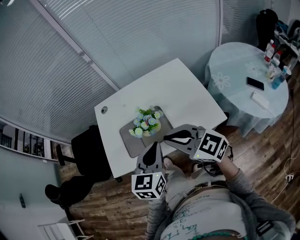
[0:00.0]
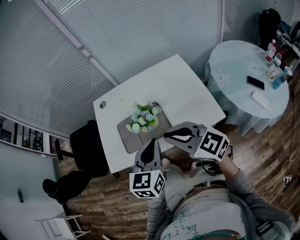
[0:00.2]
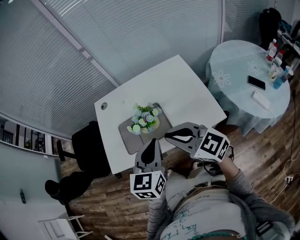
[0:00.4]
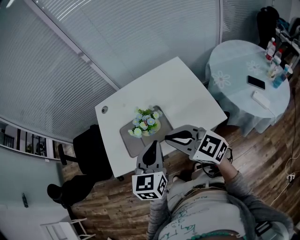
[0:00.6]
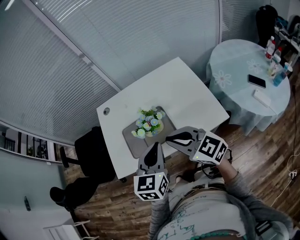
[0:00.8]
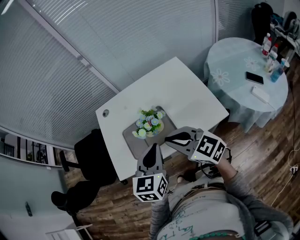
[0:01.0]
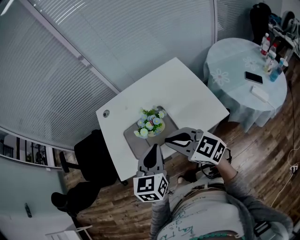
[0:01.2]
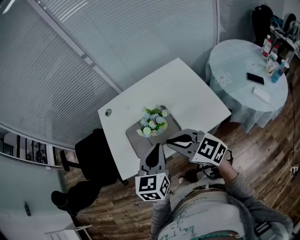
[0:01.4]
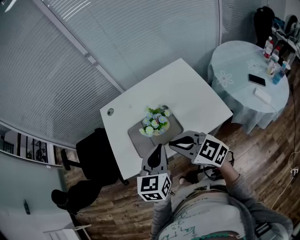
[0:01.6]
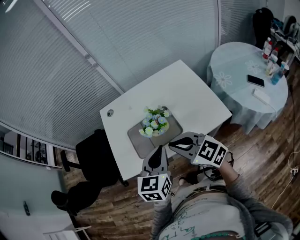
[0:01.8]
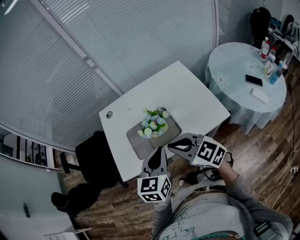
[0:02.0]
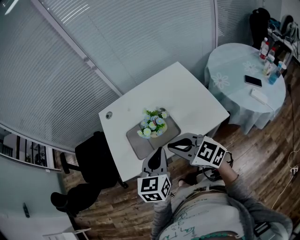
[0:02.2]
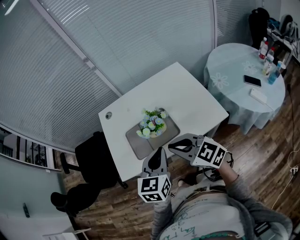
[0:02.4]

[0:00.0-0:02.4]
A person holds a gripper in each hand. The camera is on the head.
0:00.0 to 0:02.4: The grippers move only a little.

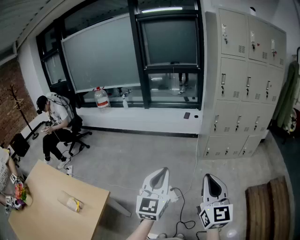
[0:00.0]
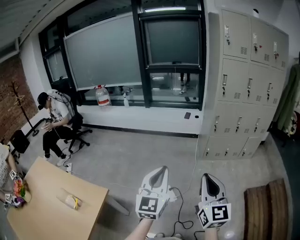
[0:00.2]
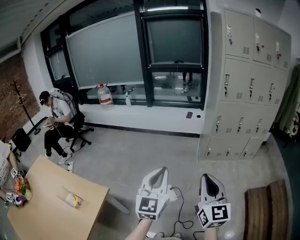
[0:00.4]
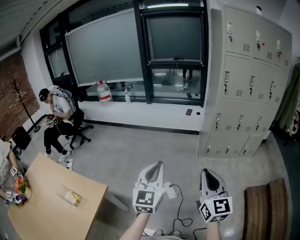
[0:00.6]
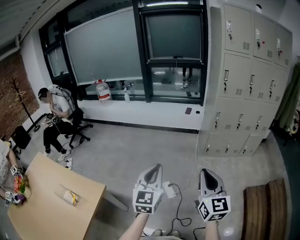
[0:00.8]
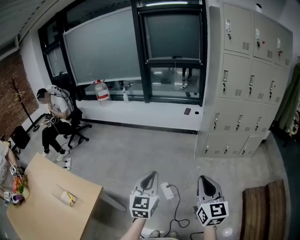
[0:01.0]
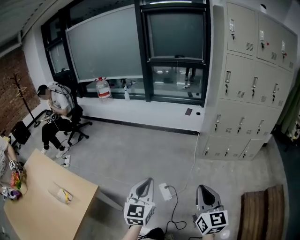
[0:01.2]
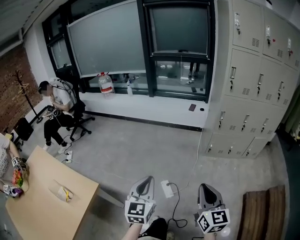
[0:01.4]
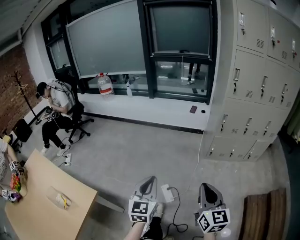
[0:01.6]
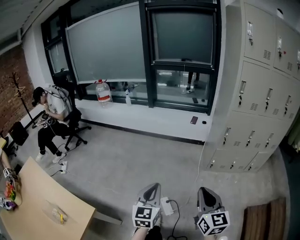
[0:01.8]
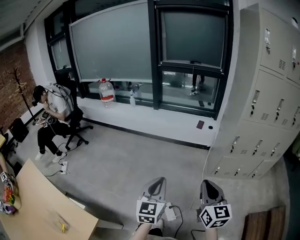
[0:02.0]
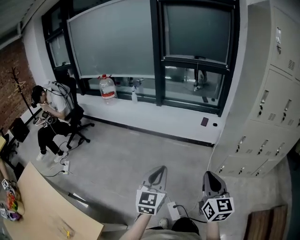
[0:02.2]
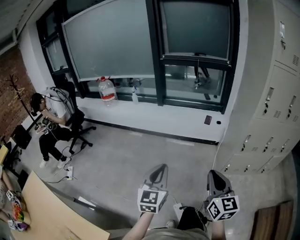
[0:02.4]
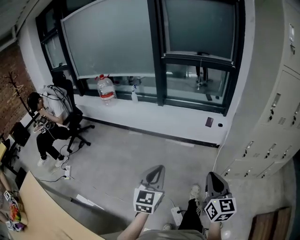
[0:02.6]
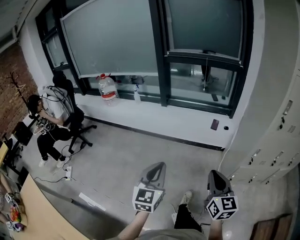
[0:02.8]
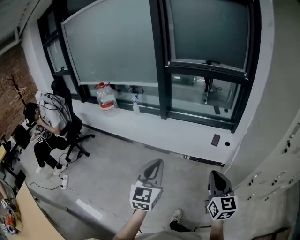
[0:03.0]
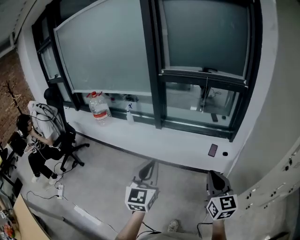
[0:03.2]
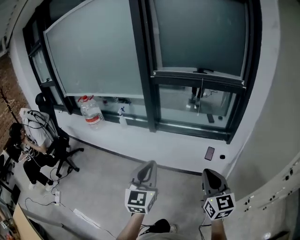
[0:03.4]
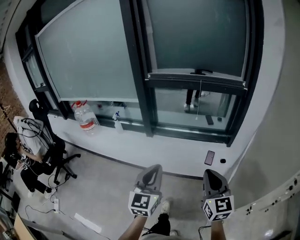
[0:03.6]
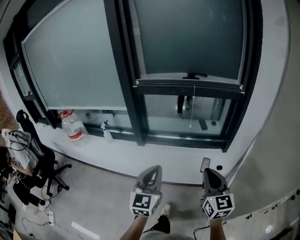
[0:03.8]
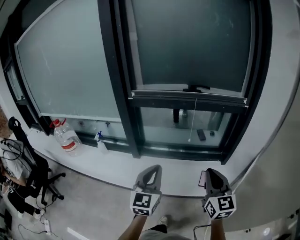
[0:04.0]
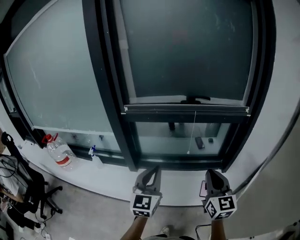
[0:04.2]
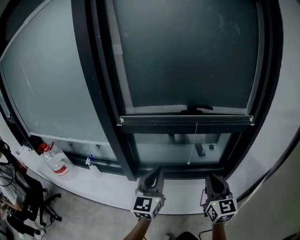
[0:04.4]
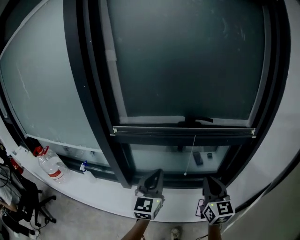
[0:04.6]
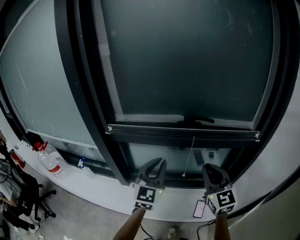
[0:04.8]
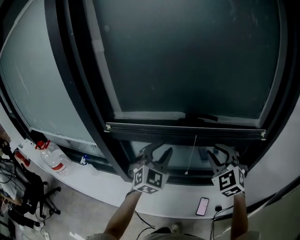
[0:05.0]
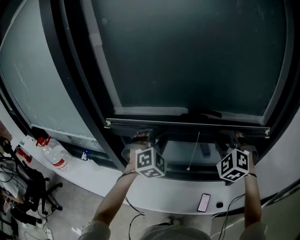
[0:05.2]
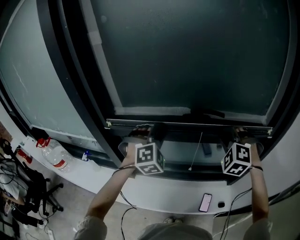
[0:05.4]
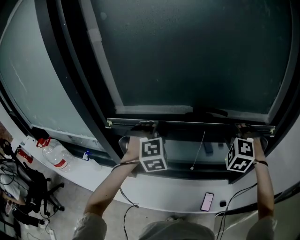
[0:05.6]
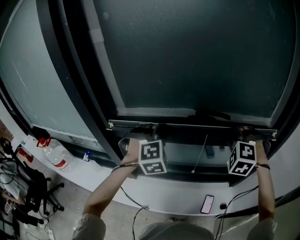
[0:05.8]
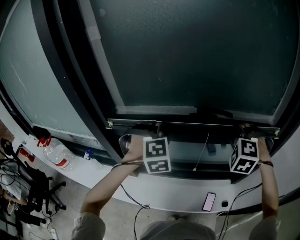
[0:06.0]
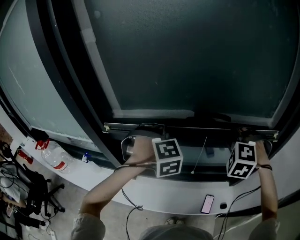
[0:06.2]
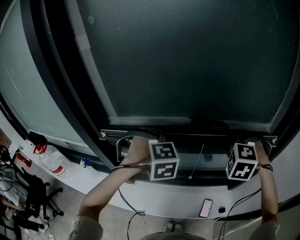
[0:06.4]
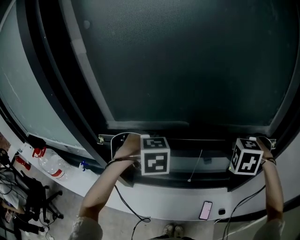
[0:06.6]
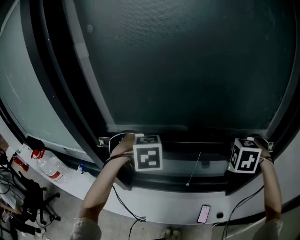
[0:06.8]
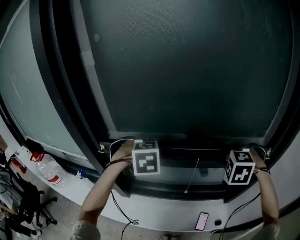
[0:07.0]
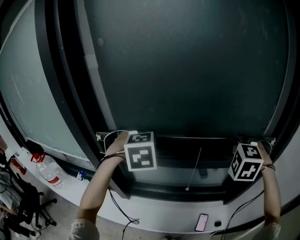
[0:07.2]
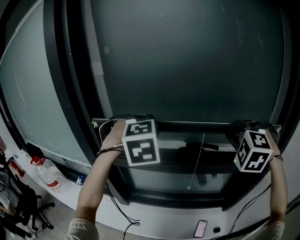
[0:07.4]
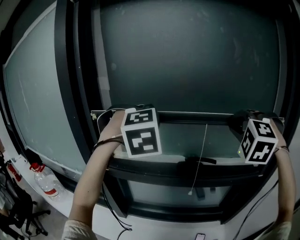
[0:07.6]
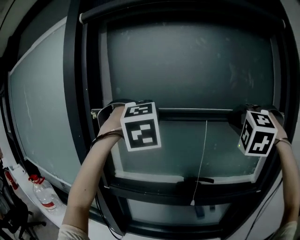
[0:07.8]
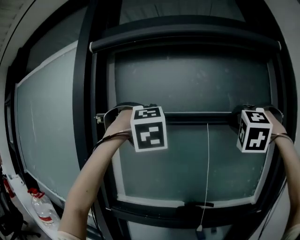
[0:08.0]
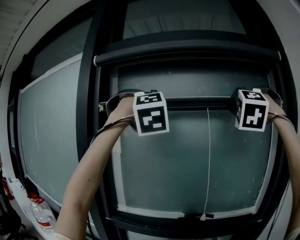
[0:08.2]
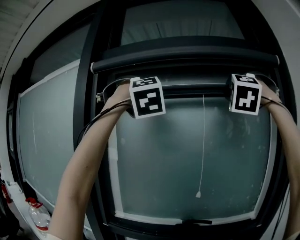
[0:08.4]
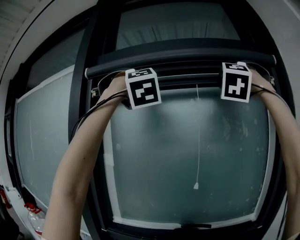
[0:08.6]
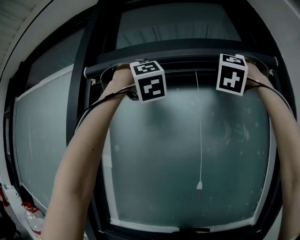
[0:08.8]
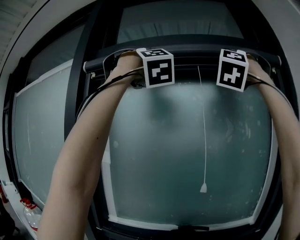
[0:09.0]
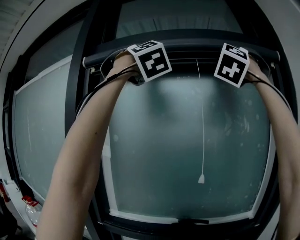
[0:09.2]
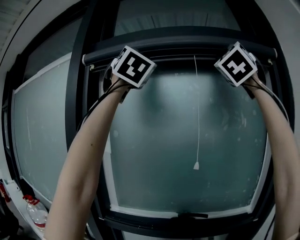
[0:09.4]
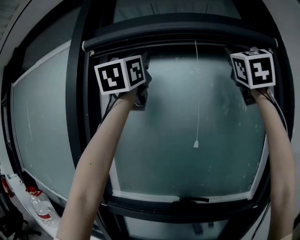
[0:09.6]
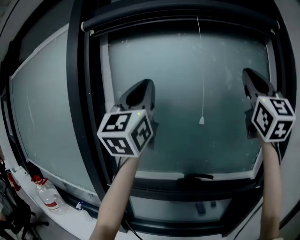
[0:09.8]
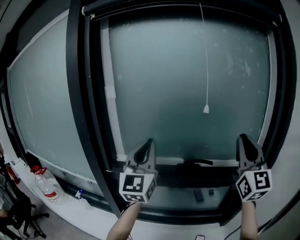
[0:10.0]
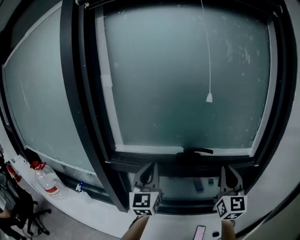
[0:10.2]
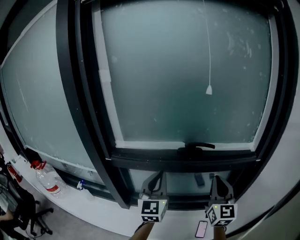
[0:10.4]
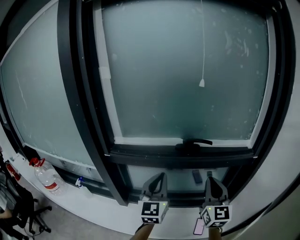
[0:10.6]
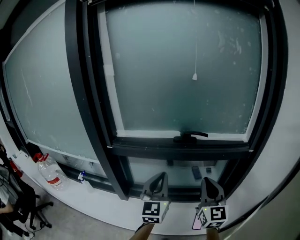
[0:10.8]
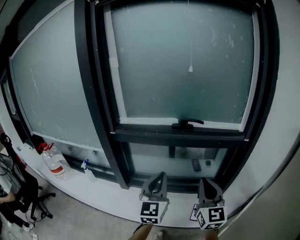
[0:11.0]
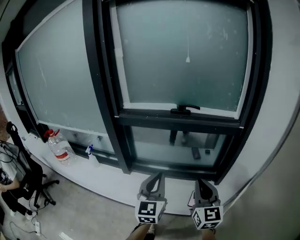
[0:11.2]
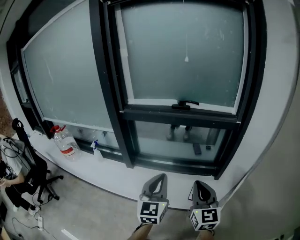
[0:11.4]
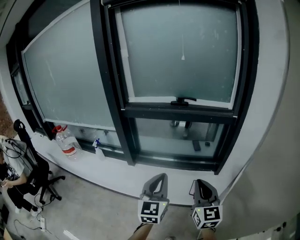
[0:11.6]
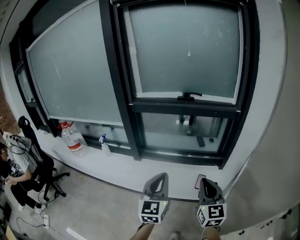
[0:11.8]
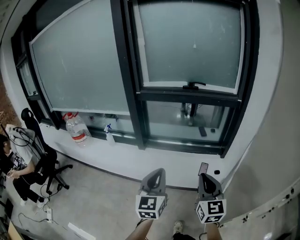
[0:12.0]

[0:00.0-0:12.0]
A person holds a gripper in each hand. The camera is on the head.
0:00.0 to 0:01.6: The right gripper goes approximately 15 cm forward and downward, while the left gripper shifts about 15 cm downward and forward.
0:01.6 to 0:03.0: Both grippers are carried forward, roughly 60 cm.
0:03.0 to 0:04.4: Both grippers are carried forward, about 60 cm.
0:04.4 to 0:06.0: Both grippers travel together forward, some 25 cm. The right gripper rotates around the line of its fingers by approximately 80 degrees, counterclockwise from behind. Meanwhile the left gripper twists some 70 degrees clockwise, seen from behind.
0:06.0 to 0:07.6: The two grippers go some 25 cm upward.
0:07.6 to 0:09.0: The two grippers go roughly 50 cm upward. The left gripper tilts its fingers roughly 40 degrees upward. Meanwhile the right gripper tips its fingers upward by some 50 degrees.
0:09.0 to 0:10.4: The two grippers go roughly 70 cm downward. The right gripper twists some 90 degrees clockwise, seen from behind. The left gripper rolls counterclockwise, seen from behind, by about 90 degrees.
0:10.4 to 0:12.0: Both grippers are carried backward, some 50 cm.

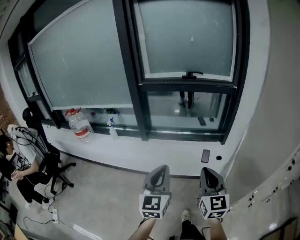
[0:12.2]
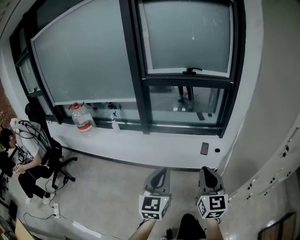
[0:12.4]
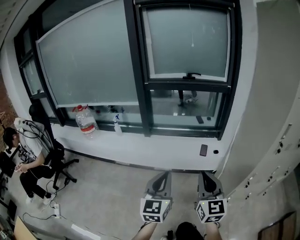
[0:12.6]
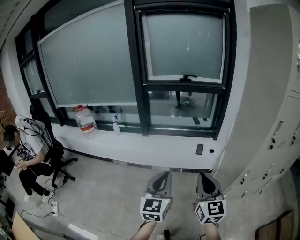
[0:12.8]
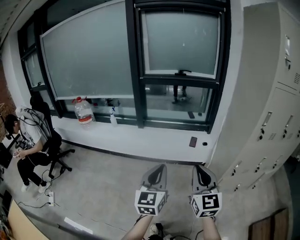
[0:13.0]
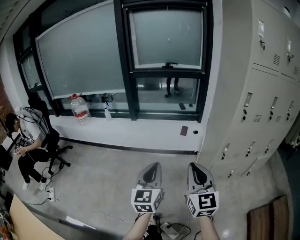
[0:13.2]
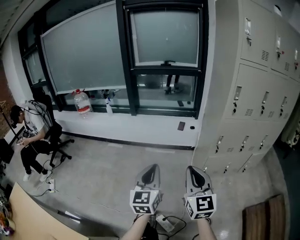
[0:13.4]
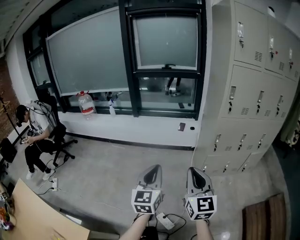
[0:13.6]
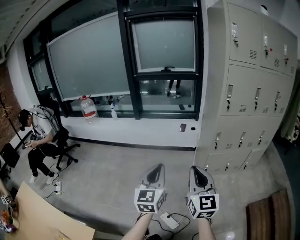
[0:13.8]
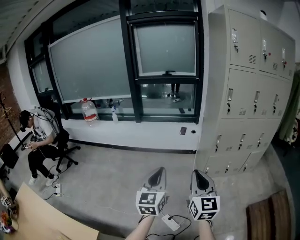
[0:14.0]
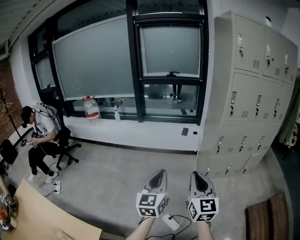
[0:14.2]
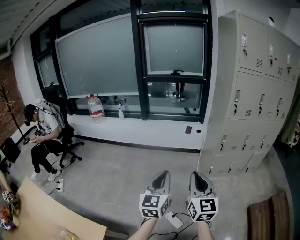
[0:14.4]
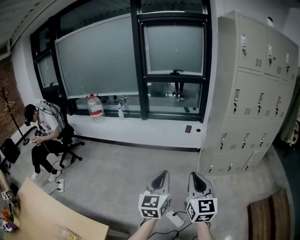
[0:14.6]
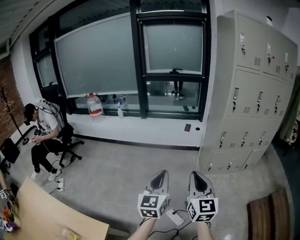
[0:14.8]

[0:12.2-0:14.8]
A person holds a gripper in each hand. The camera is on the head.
0:12.2 to 0:13.4: The two grippers travel together, backward, some 50 cm.
0:13.4 to 0:14.8: The two grippers go roughly 15 cm backward.

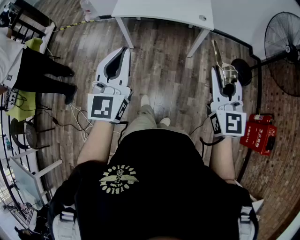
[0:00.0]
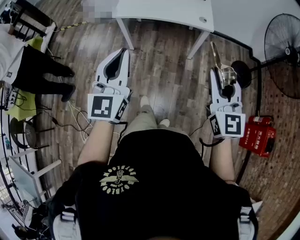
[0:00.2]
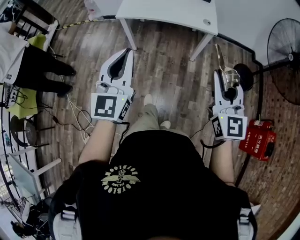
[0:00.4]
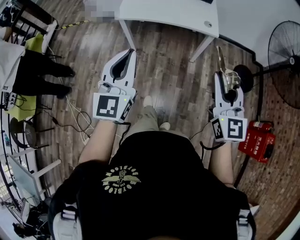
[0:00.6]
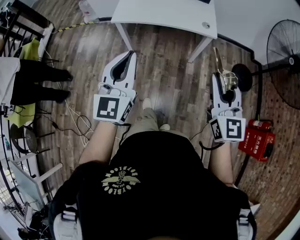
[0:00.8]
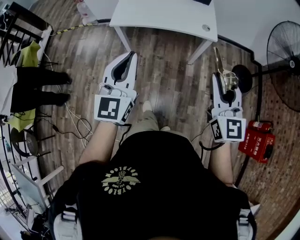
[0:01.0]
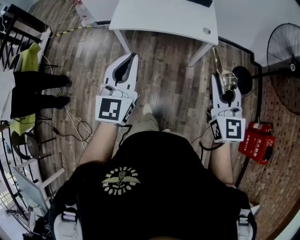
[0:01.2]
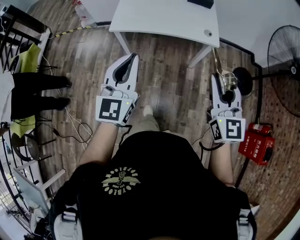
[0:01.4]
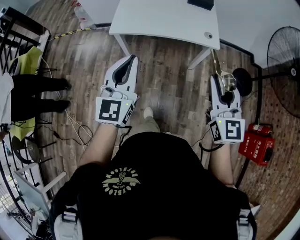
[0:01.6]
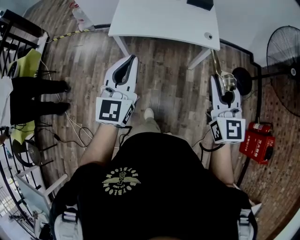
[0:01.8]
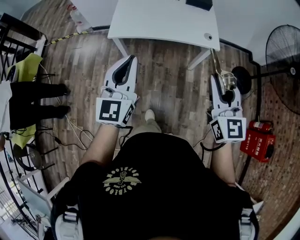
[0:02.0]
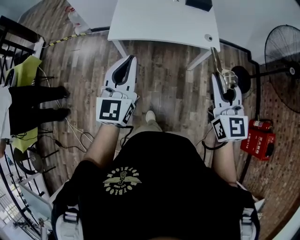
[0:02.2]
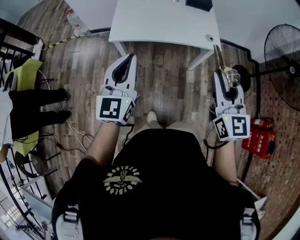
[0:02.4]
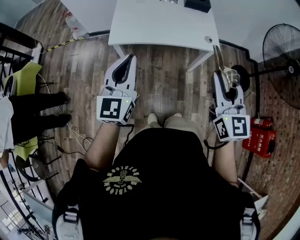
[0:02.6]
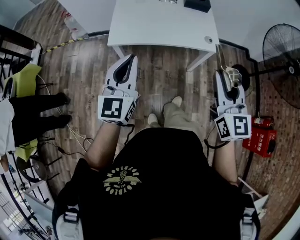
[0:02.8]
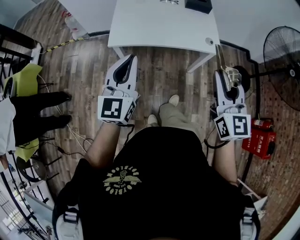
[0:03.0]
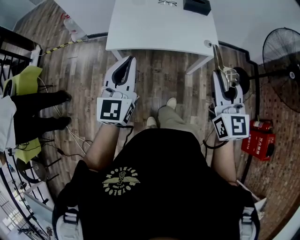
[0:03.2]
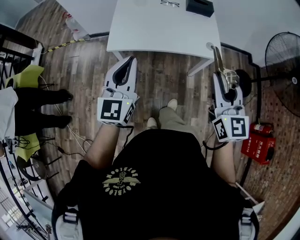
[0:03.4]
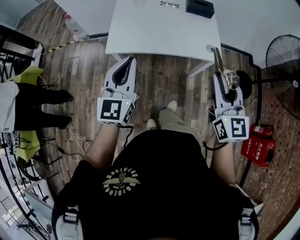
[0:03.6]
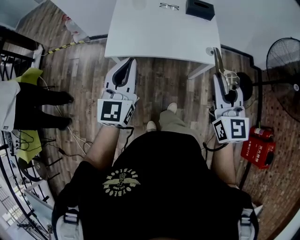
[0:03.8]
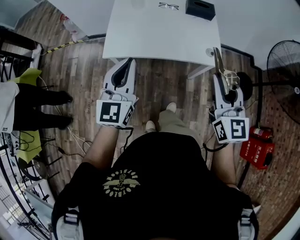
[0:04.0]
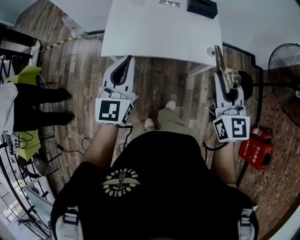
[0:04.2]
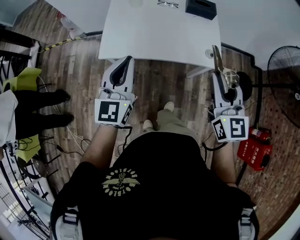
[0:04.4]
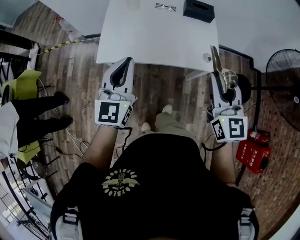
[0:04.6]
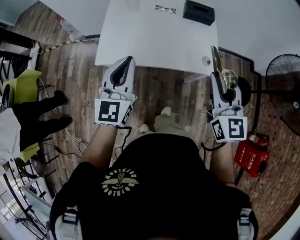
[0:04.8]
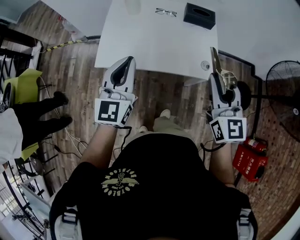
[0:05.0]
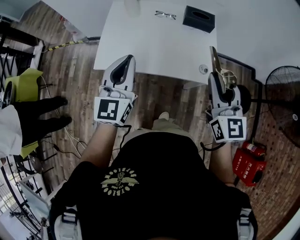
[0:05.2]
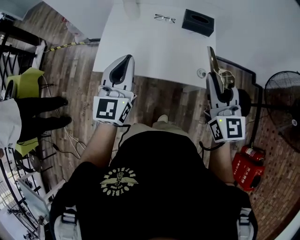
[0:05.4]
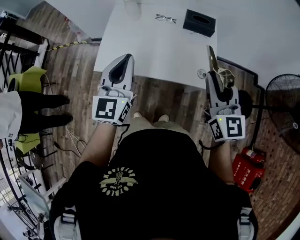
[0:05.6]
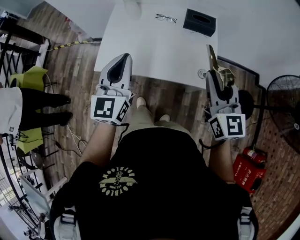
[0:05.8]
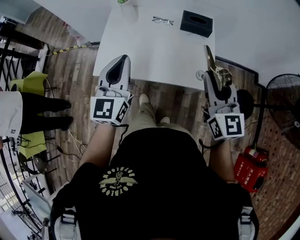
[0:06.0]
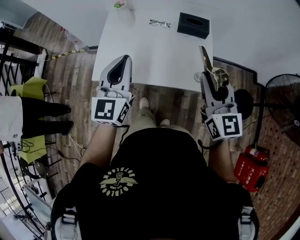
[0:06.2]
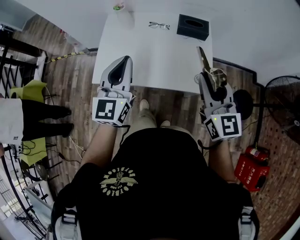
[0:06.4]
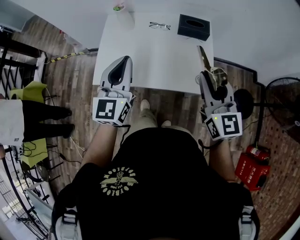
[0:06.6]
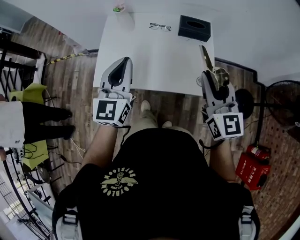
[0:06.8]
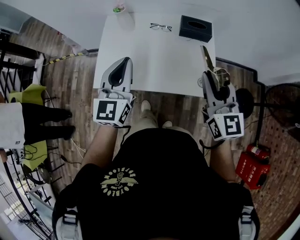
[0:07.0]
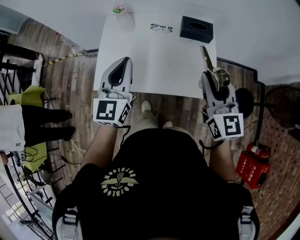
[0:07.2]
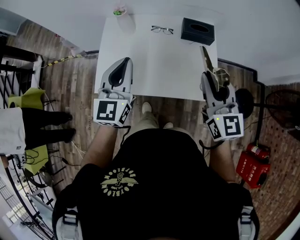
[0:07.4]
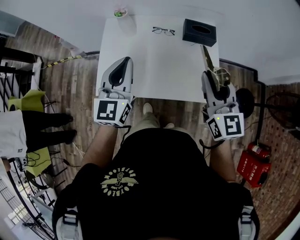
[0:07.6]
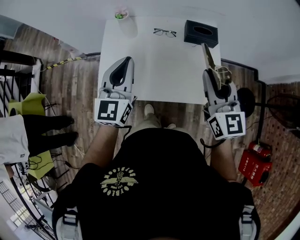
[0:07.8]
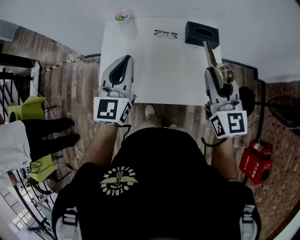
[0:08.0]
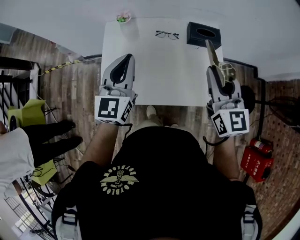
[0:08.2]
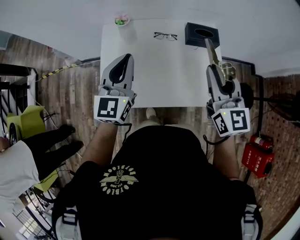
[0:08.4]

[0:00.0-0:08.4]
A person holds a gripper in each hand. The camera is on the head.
0:00.0 to 0:01.4: Both grippers travel together forward, roughly 15 cm.
0:01.4 to 0:02.8: Both grippers move forward and to the left, about 10 cm.
0:02.8 to 0:04.2: Both grippers move forward, roughly 15 cm.
0:04.2 to 0:05.6: Both grippers travel together forward and to the right, approximately 15 cm.
0:05.6 to 0:07.0: The grippers both shift forward by some 5 cm.
0:07.0 to 0:08.4: The grippers both shift forward and to the left by approximately 15 cm.
